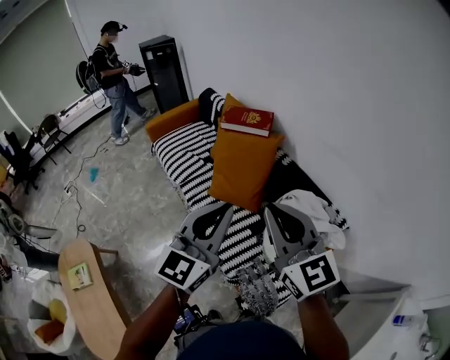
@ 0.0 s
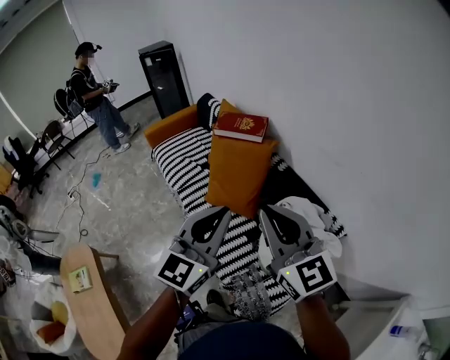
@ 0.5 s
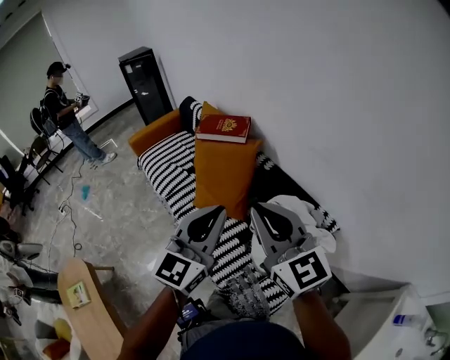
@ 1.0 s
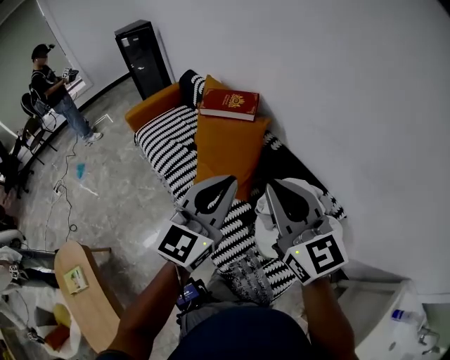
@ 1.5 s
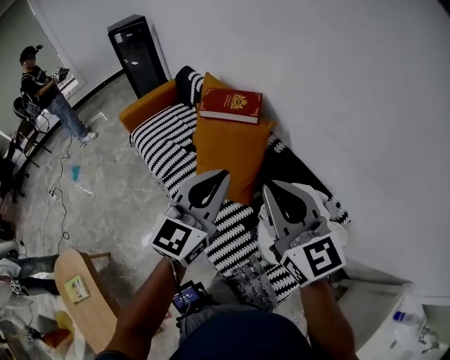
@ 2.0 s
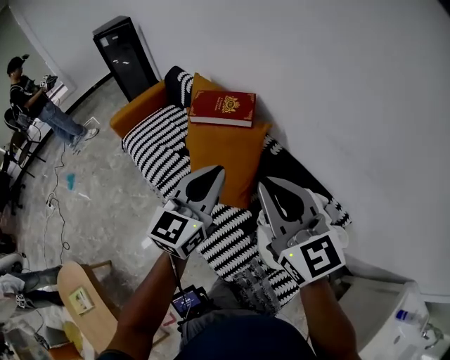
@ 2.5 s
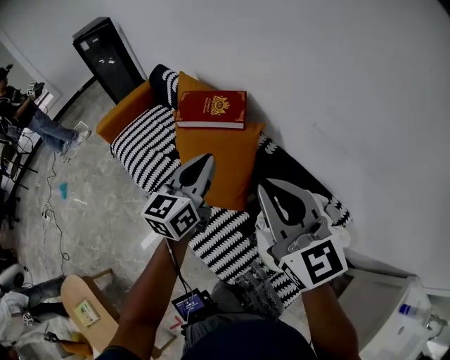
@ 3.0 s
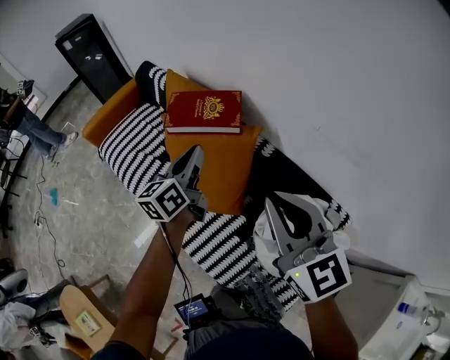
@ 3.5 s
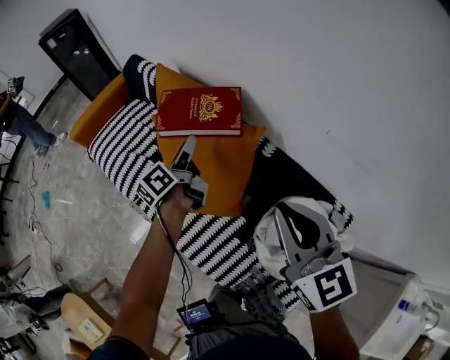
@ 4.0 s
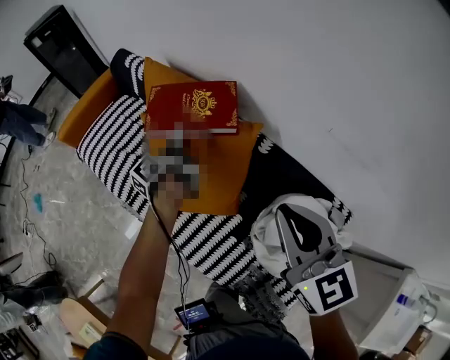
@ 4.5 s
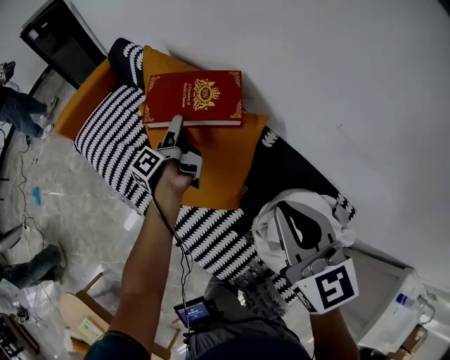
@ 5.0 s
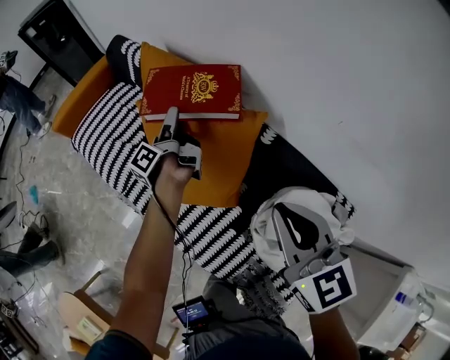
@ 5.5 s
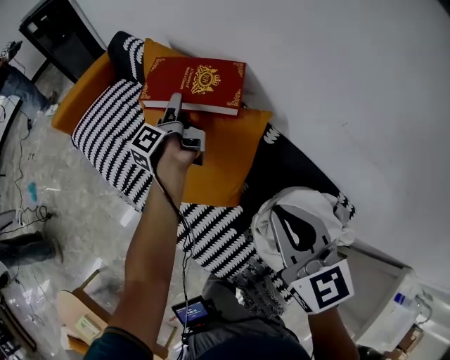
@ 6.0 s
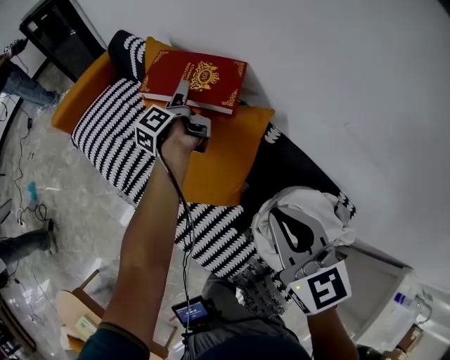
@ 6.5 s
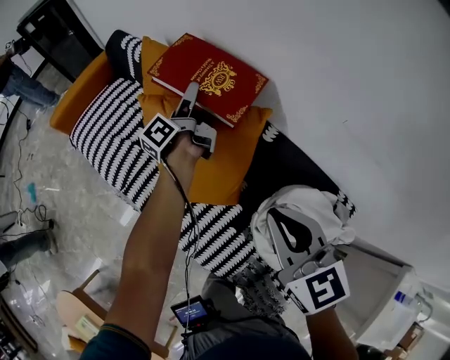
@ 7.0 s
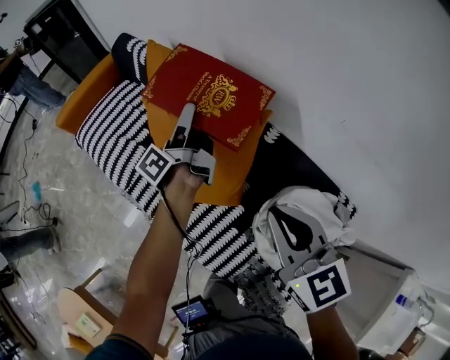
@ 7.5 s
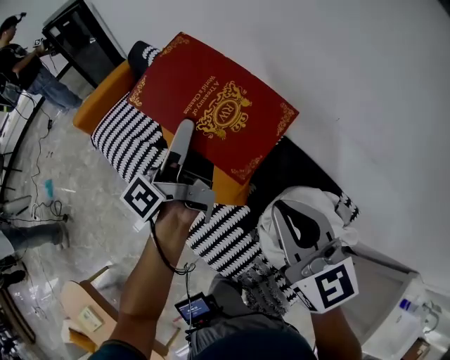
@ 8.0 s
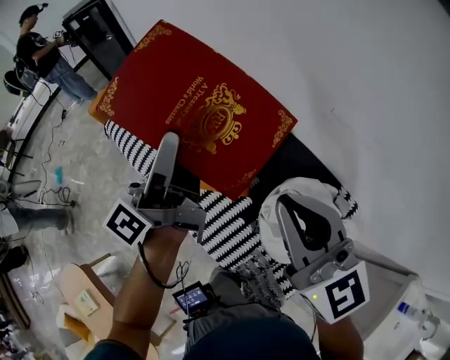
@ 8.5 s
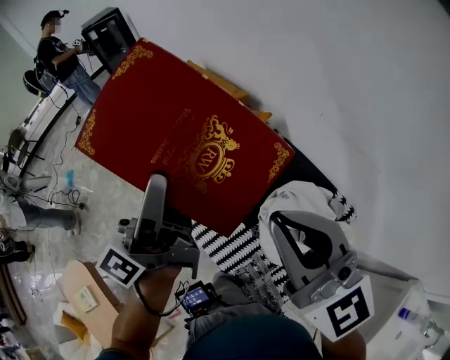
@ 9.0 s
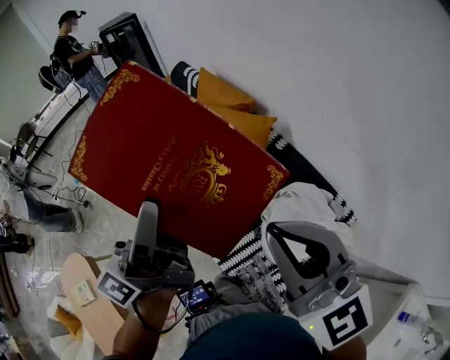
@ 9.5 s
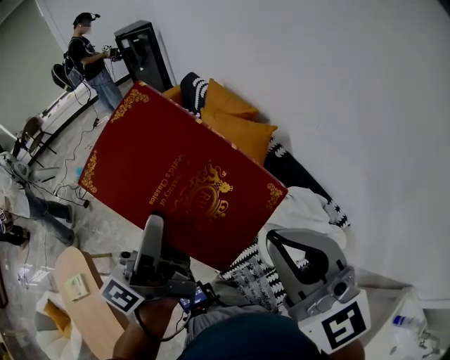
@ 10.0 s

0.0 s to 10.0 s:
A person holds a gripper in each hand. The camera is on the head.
0.0 to 2.0 s: The two grippers go about 15 cm forward.
2.0 to 4.0 s: The right gripper shifts about 20 cm forward and downward; the left gripper goes some 40 cm forward and downward, rotates around the line of its fingers by some 70 degrees, counterclockwise from behind, and opens.
4.0 to 6.0 s: The left gripper shifts approximately 10 cm forward and downward, and rotates about 30 degrees. The right gripper goes about 5 cm downward.
6.0 to 8.0 s: The left gripper travels upward and backward by approximately 25 cm, and swivels roughly 30 degrees. The right gripper moves upward, about 5 cm.
8.0 to 10.0 s: Both grippers move backward and upward, approximately 40 cm. The right gripper changes its angle by some 30 degrees. Meanwhile the left gripper turns by roughly 30 degrees.

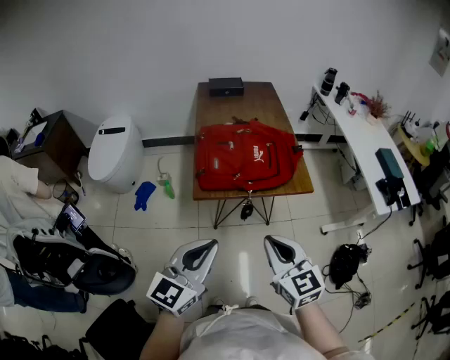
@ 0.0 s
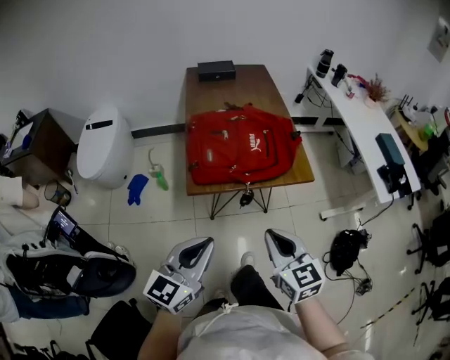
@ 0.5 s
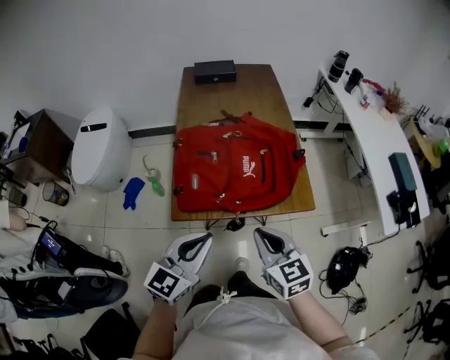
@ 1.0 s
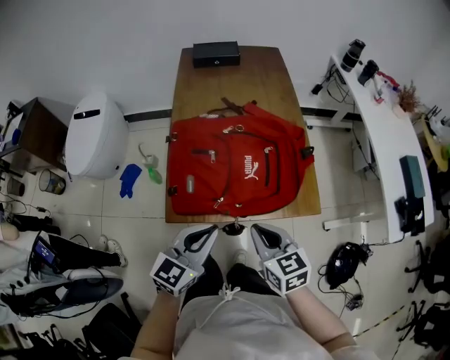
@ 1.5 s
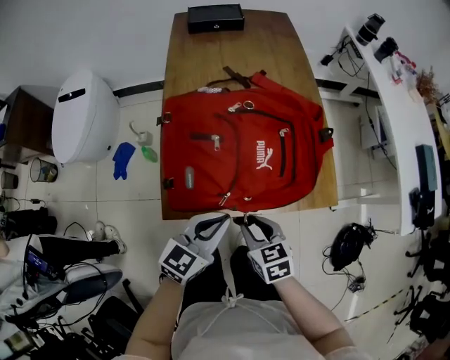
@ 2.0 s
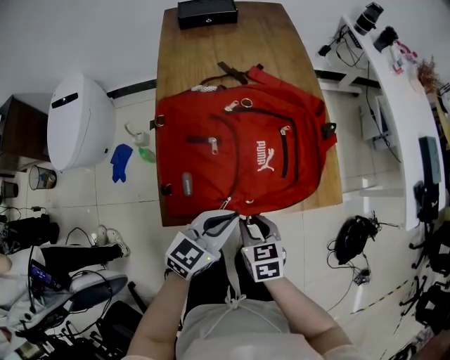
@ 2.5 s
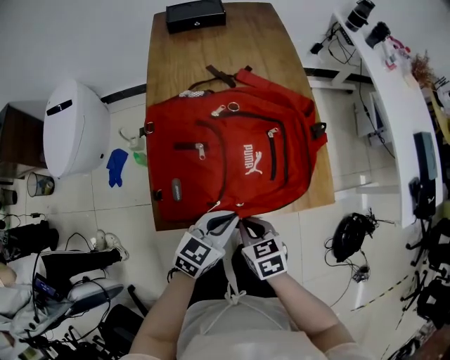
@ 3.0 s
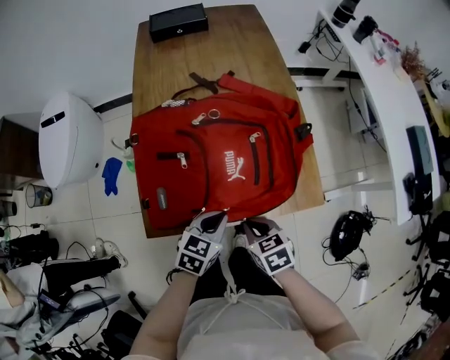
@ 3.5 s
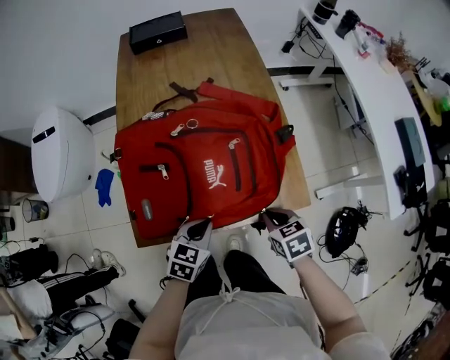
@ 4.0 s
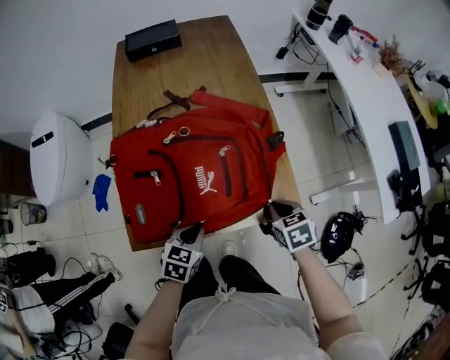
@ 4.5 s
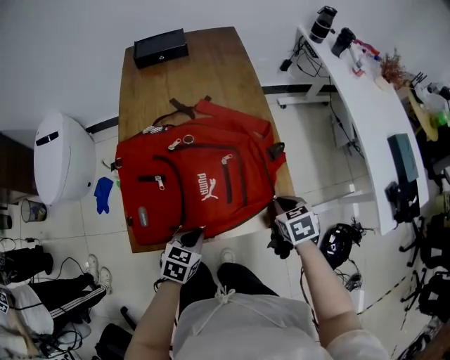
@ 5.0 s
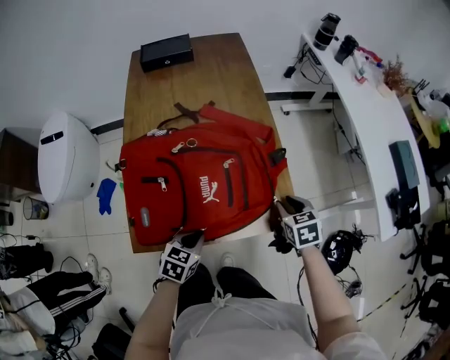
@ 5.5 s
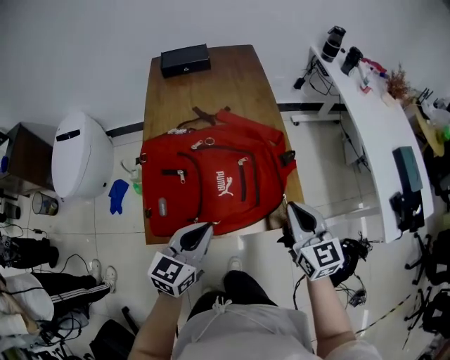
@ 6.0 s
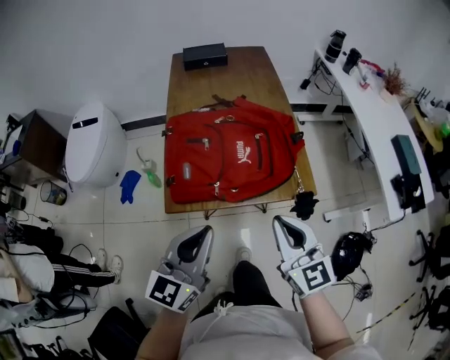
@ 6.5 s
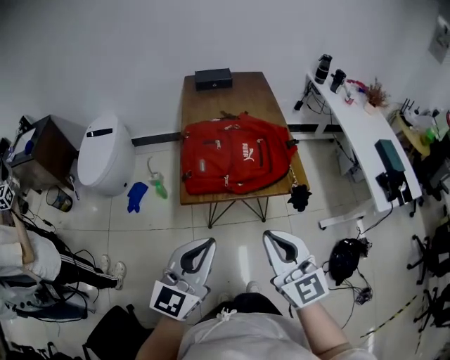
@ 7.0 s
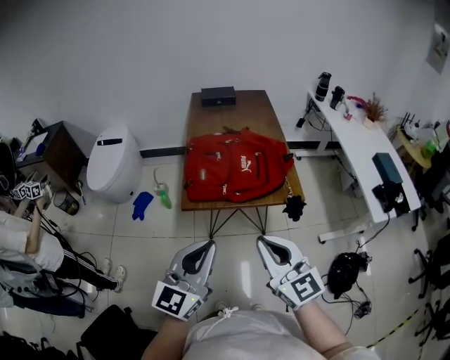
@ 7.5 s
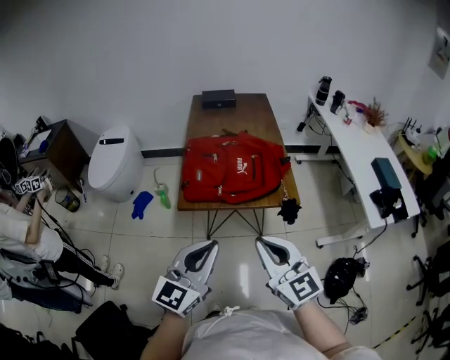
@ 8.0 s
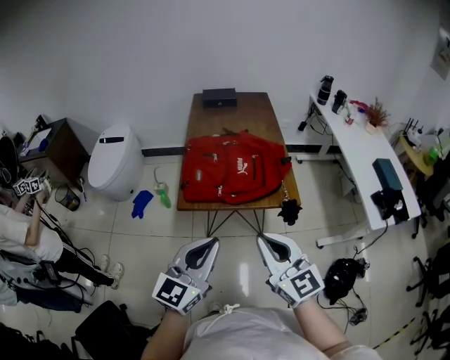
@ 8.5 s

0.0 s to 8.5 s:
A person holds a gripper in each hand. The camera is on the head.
0.0 to 2.0 s: The right gripper heads downward and forward, covering some 40 cm, changes its angle by about 30 degrees, and opens, while the left gripper shifts about 40 cm forward and downward, and turns by about 20 degrees.
2.0 to 4.0 s: The left gripper travels downward by some 10 cm, and changes its angle by approximately 20 degrees. Meanwhile the right gripper travels to the right and forward by some 15 cm, and closes.
4.0 to 6.5 s: Both grippers move upward and backward, approximately 30 cm. The right gripper tips its fingers upward by about 50 degrees, and opens and closes again, while the left gripper tilts its fingers approximately 40 degrees upward.
6.5 to 8.5 s: The two grippers go approximately 15 cm backward and upward.

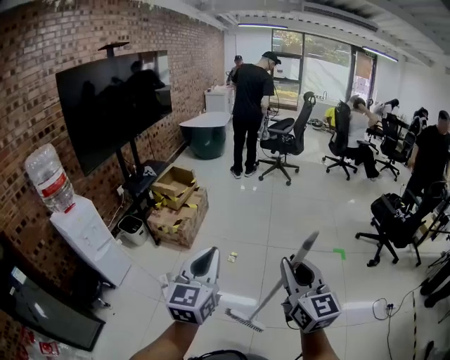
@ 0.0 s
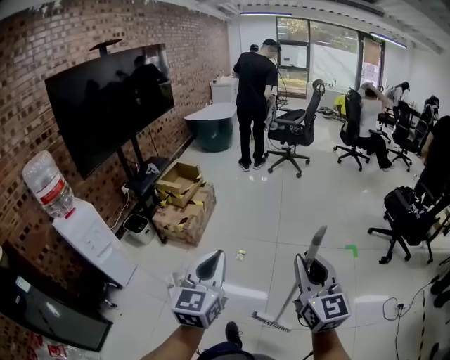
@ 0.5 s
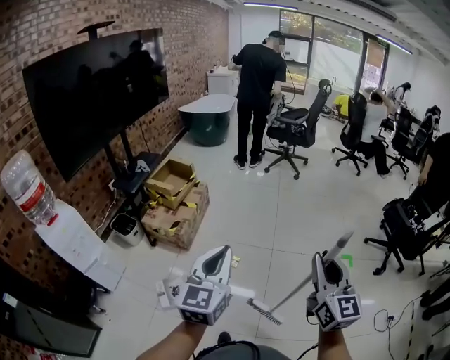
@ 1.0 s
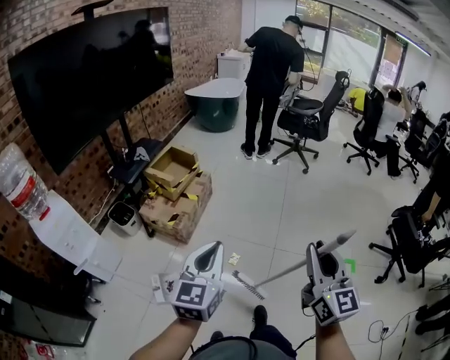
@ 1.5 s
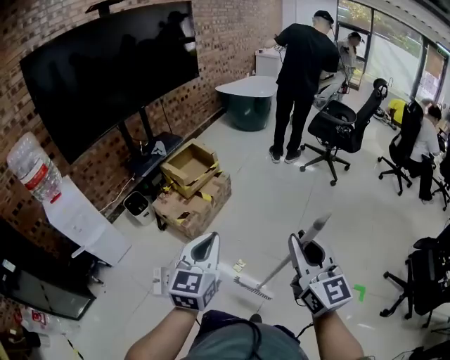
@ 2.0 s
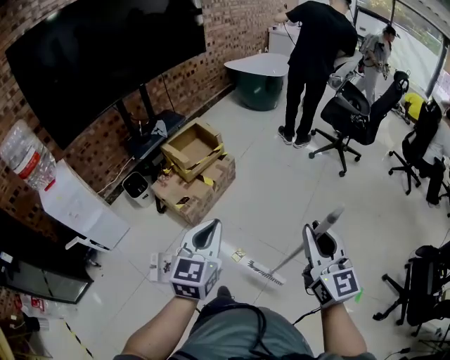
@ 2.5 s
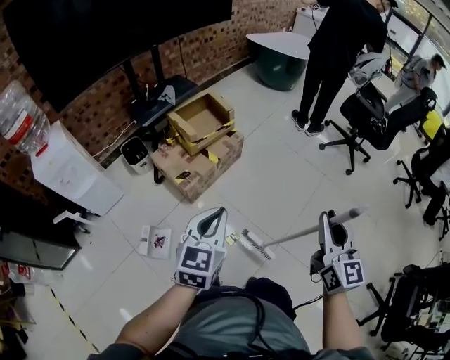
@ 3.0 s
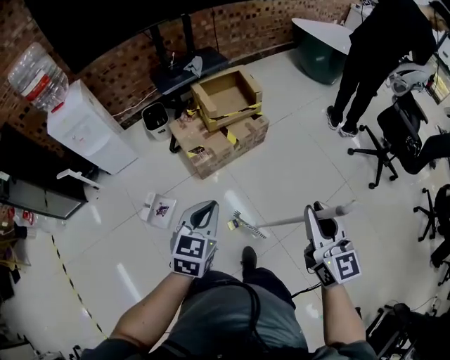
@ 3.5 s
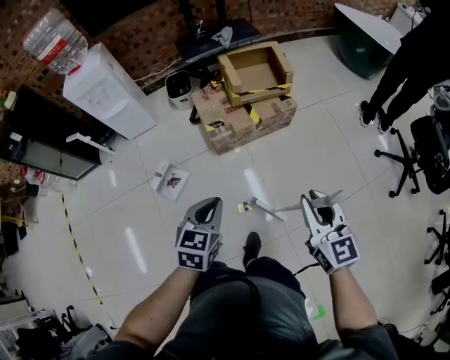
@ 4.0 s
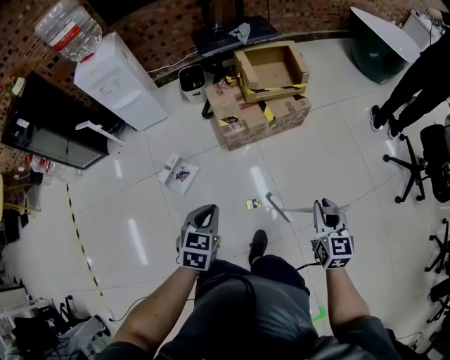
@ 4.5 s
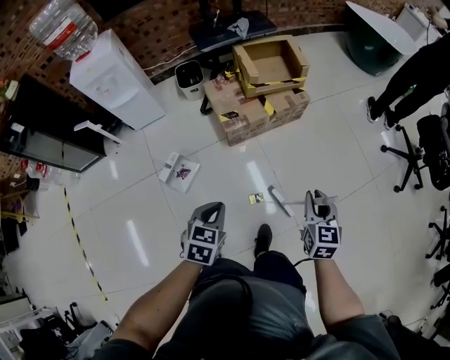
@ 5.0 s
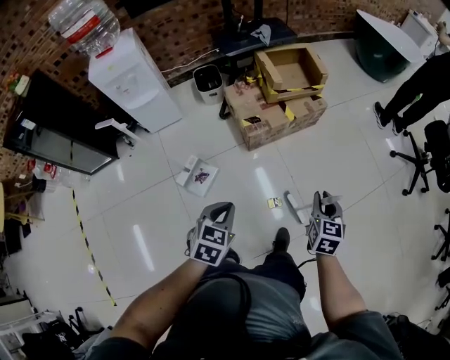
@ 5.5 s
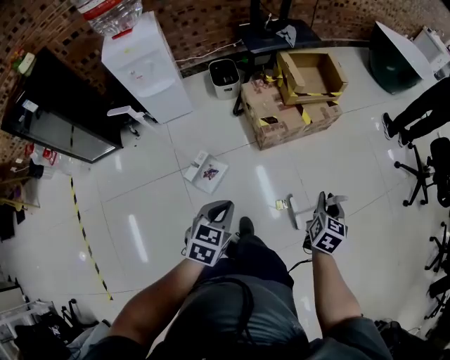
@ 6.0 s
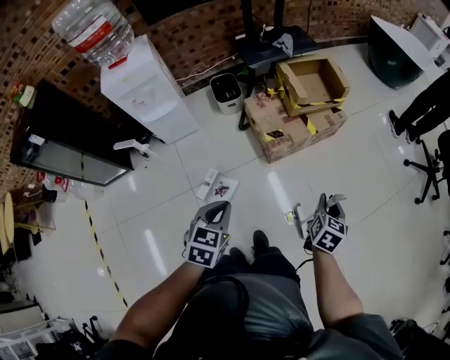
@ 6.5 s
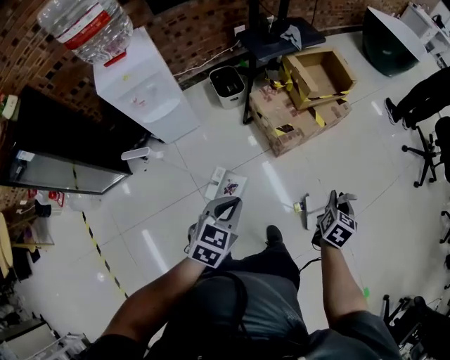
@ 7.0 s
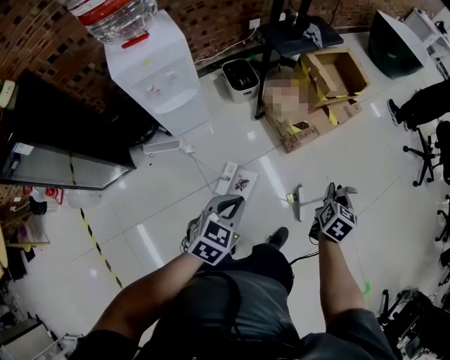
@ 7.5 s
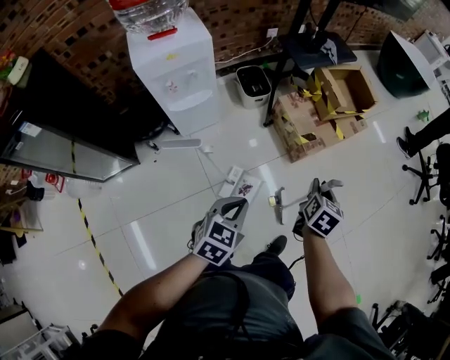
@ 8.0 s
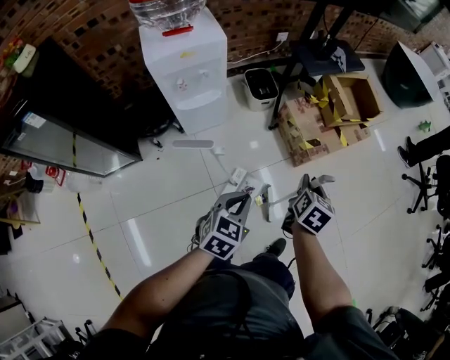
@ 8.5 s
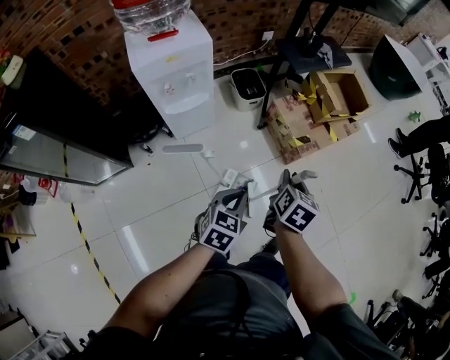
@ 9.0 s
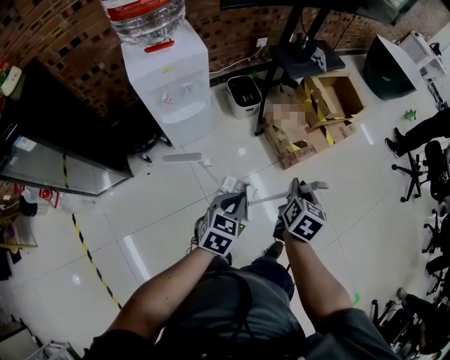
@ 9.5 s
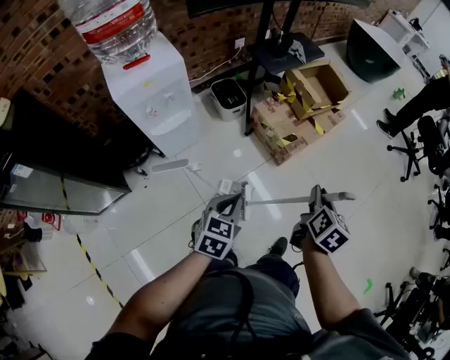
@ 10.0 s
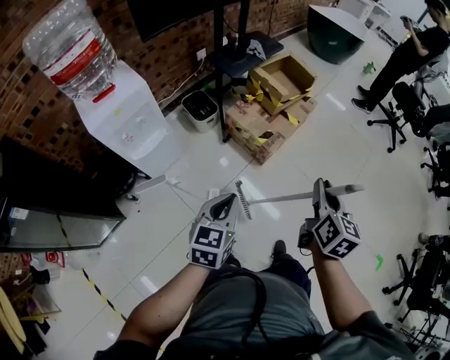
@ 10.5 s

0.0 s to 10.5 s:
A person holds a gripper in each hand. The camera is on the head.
0.0 to 2.0 s: The pair of grippers is taken forward, some 60 cm.
2.0 to 4.0 s: The right gripper changes place by roughly 50 cm, and turns by some 50 degrees. Meanwhile the left gripper shifts about 30 cm downward, and swivels some 40 degrees.
4.0 to 6.5 s: The left gripper shifts about 40 cm to the left. The right gripper heads to the left and downward, covering about 35 cm, and changes its angle by about 50 degrees.
6.5 to 8.5 s: The grippers both shift to the left by some 40 cm.
8.5 to 10.5 s: The right gripper goes approximately 25 cm upward and to the right, and swivels approximately 20 degrees. Meanwhile the left gripper goes roughly 15 cm upward and to the right.
